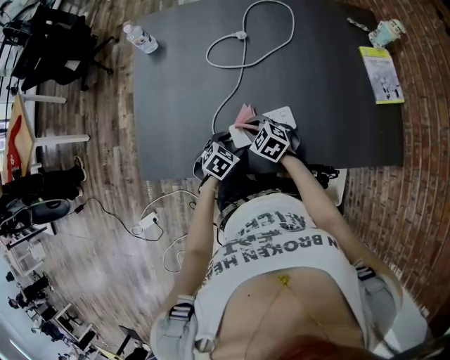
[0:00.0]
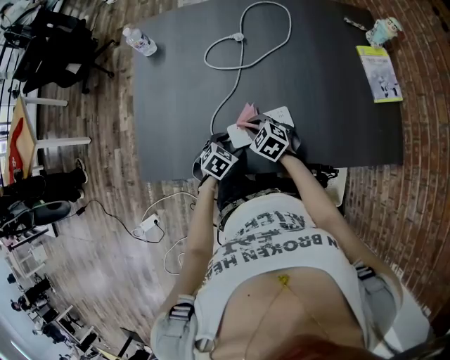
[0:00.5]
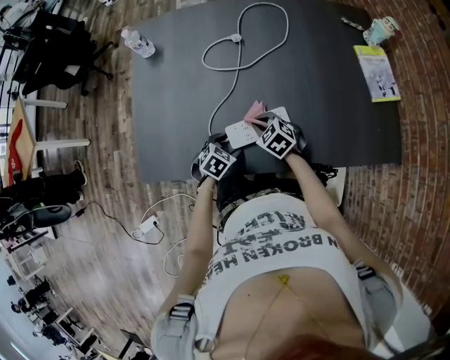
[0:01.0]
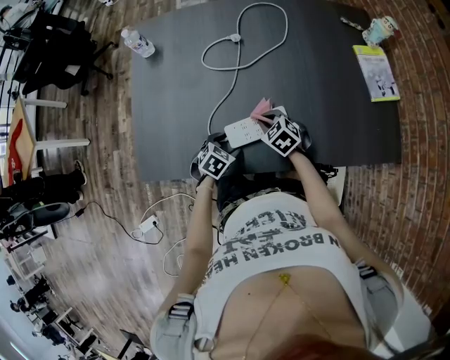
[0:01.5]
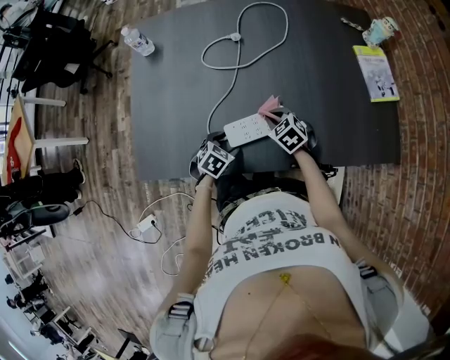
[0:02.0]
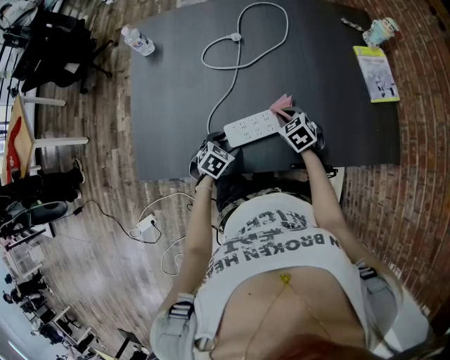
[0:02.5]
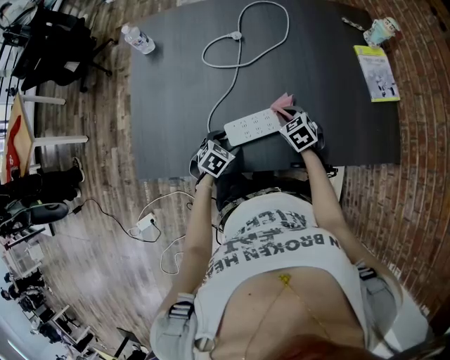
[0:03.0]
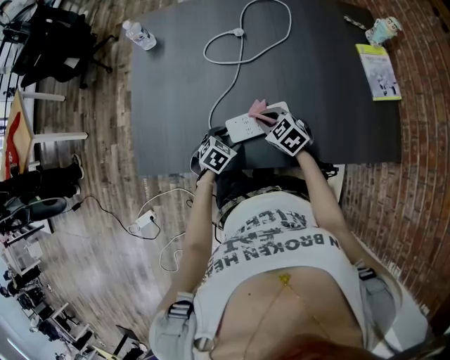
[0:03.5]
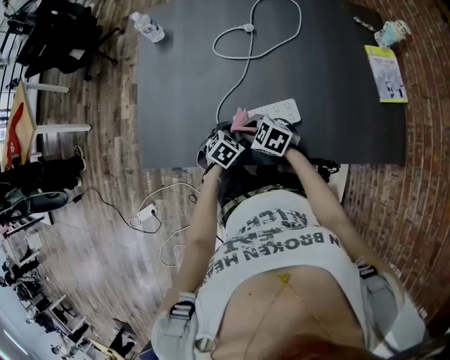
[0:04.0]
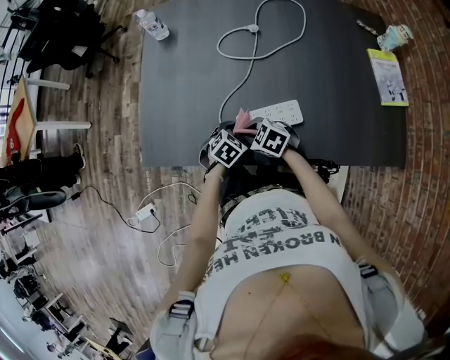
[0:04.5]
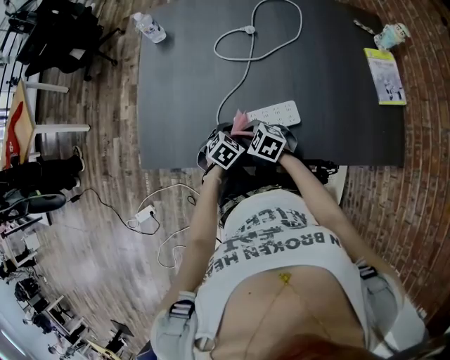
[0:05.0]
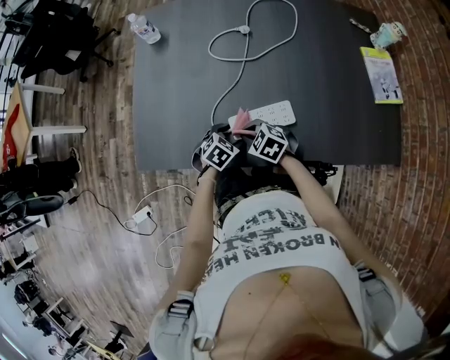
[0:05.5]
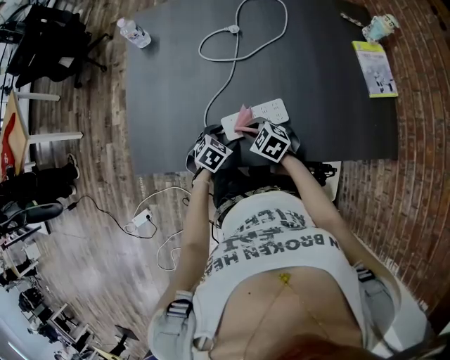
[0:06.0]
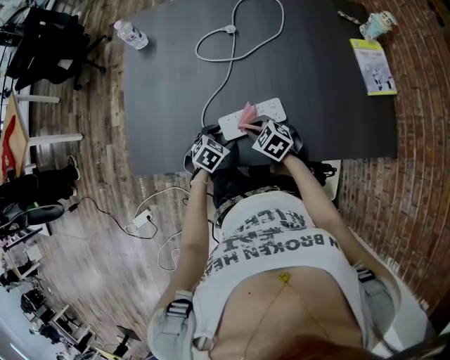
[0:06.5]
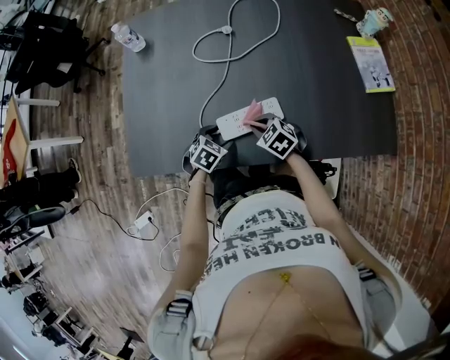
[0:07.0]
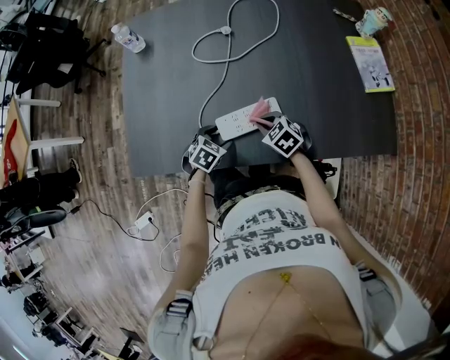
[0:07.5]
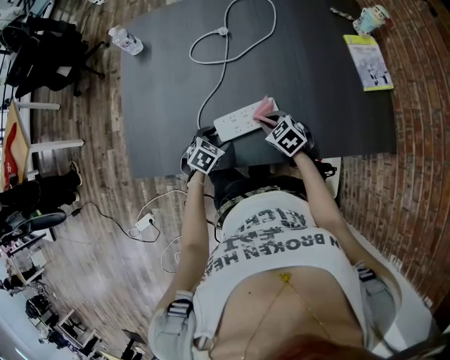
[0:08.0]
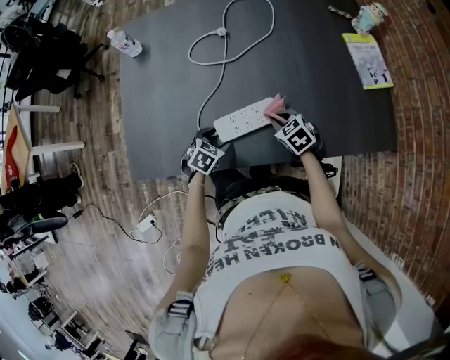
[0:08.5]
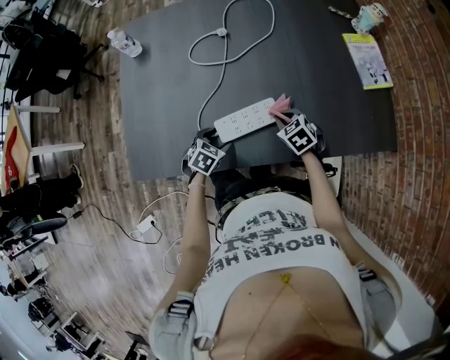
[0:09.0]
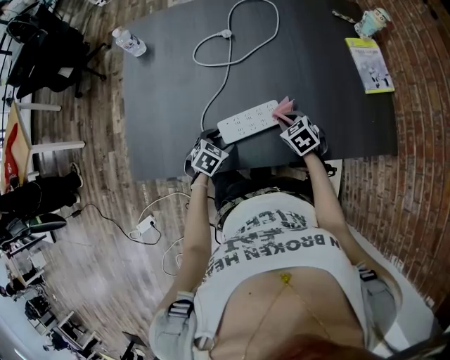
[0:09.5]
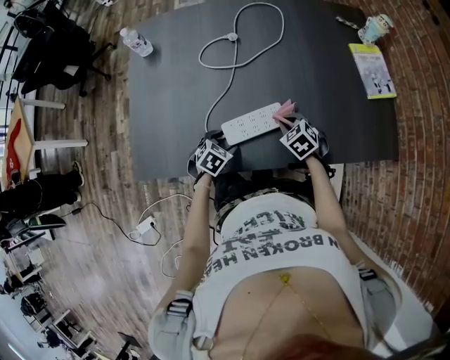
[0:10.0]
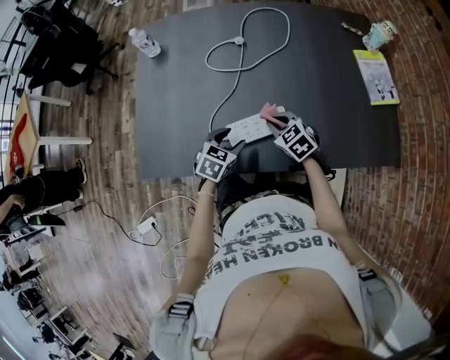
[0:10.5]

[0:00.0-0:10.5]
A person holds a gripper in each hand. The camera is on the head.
0:00.0 to 0:02.0: The right gripper goes approximately 10 cm to the right.
0:02.0 to 0:04.0: The right gripper shifts by roughly 15 cm, and swivels approximately 30 degrees.
0:04.0 to 0:06.5: The right gripper changes place by roughly 5 cm.
0:06.5 to 0:08.5: The right gripper goes approximately 10 cm to the right.
0:08.5 to 0:10.5: The left gripper goes about 10 cm upward; the right gripper shifts some 5 cm to the left.

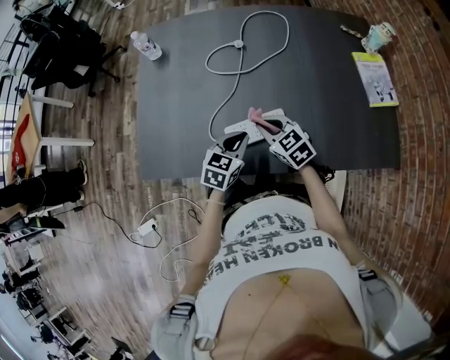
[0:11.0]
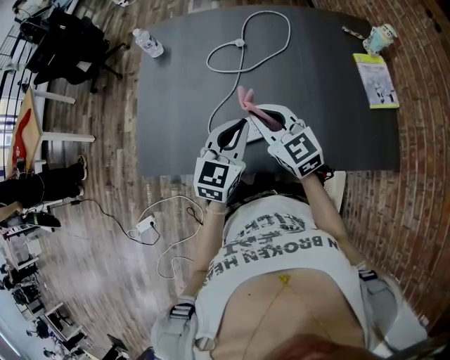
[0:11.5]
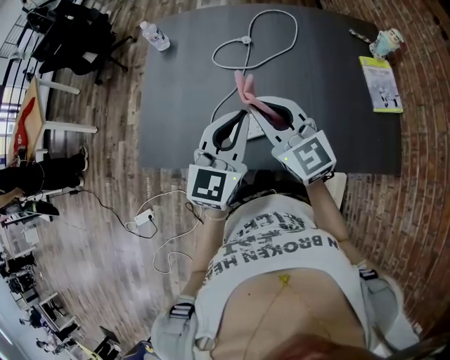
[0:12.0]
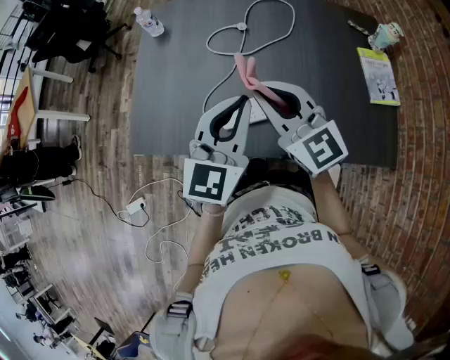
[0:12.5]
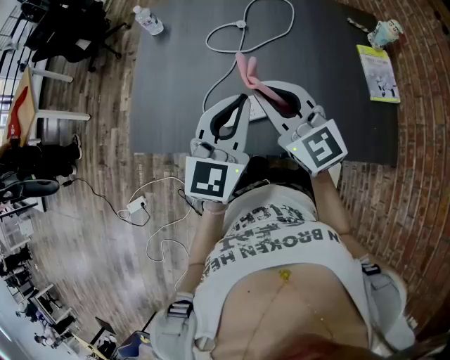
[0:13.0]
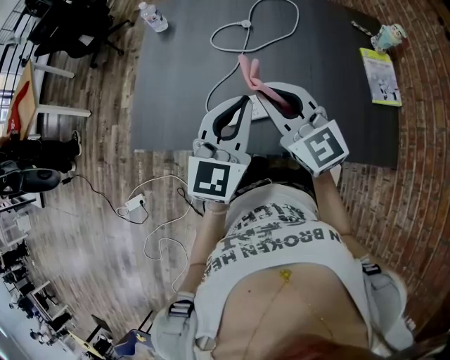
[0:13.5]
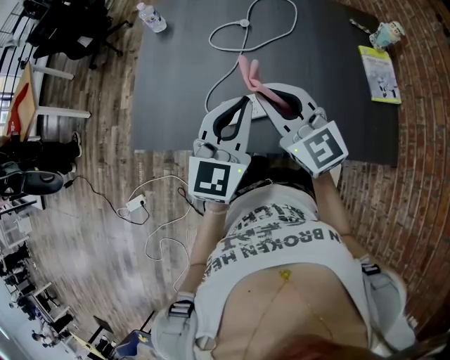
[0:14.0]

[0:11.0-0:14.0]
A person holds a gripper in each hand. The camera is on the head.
0:11.0 to 0:12.5: Both grippers move upward, roughly 25 cm. The right gripper angles its fingers upward, by some 30 degrees; the left gripper swivels approximately 30 degrees.
0:12.5 to 0:14.0: The grippers make only small movements.

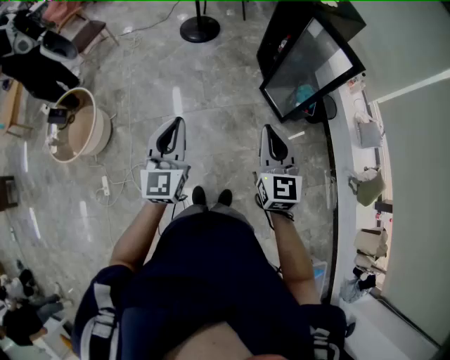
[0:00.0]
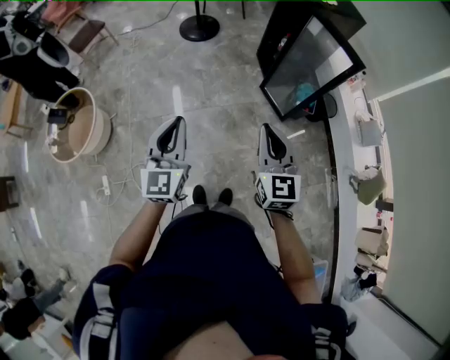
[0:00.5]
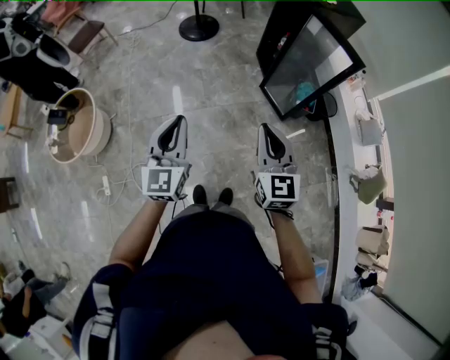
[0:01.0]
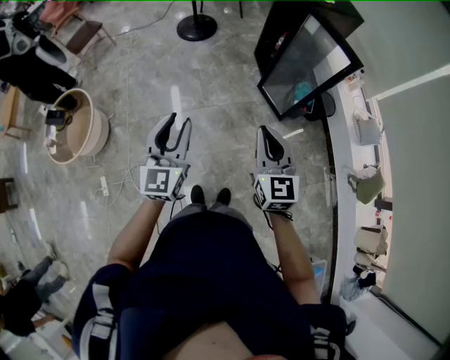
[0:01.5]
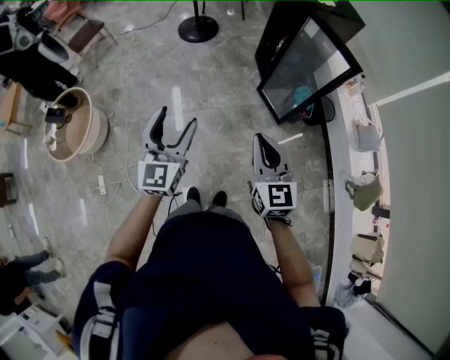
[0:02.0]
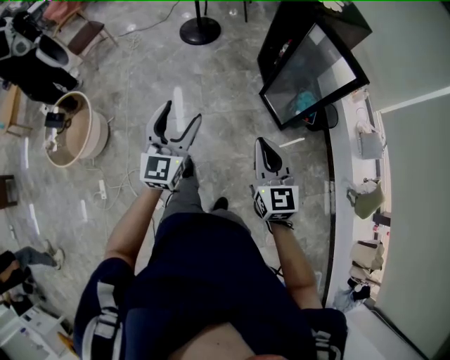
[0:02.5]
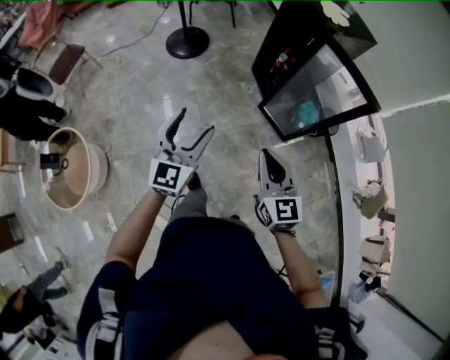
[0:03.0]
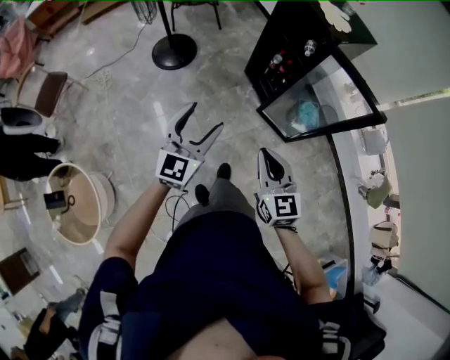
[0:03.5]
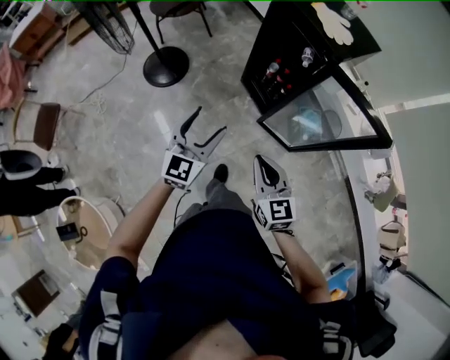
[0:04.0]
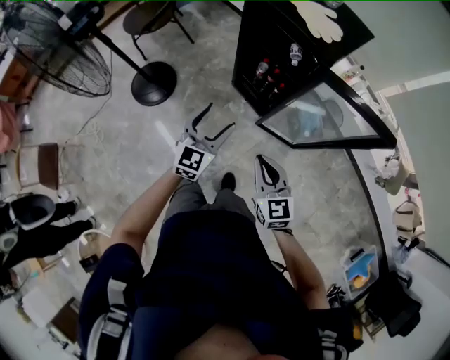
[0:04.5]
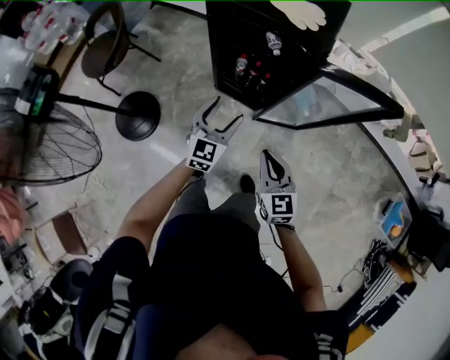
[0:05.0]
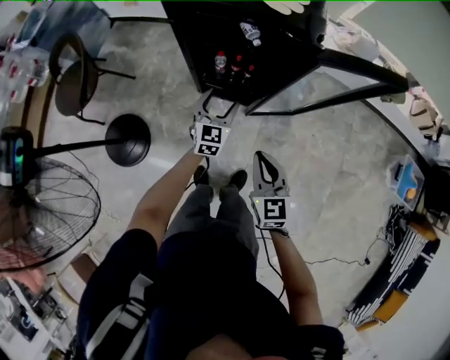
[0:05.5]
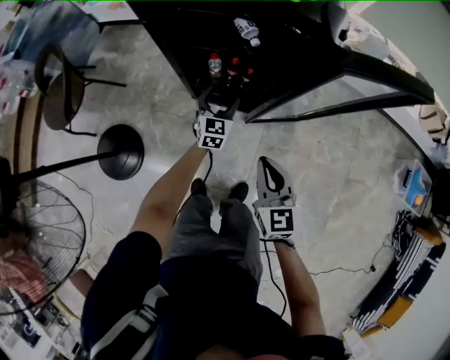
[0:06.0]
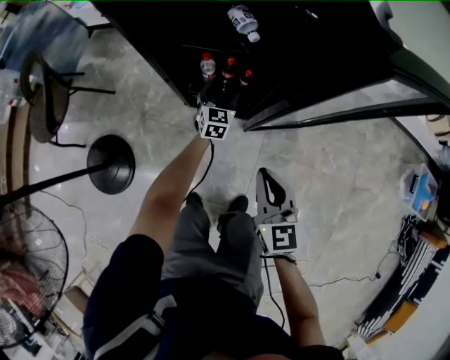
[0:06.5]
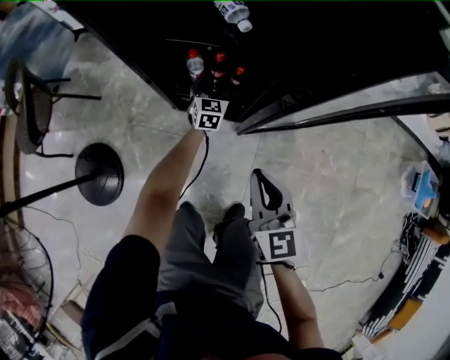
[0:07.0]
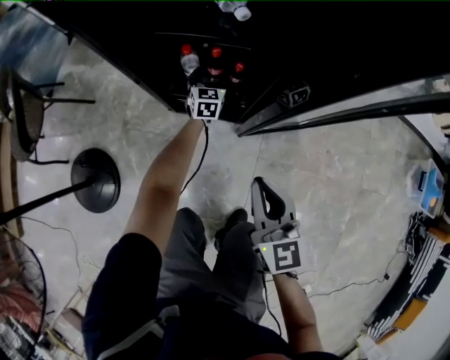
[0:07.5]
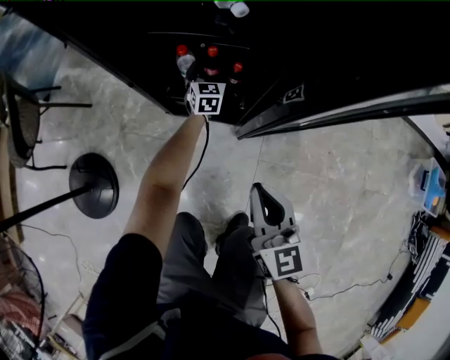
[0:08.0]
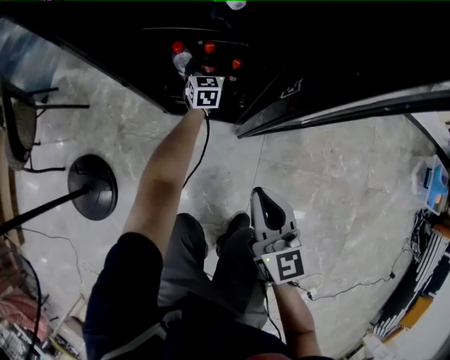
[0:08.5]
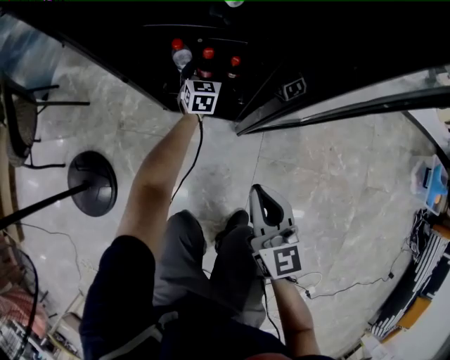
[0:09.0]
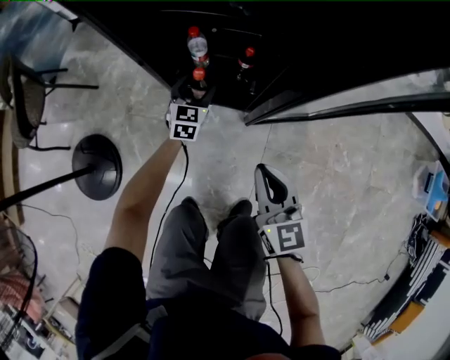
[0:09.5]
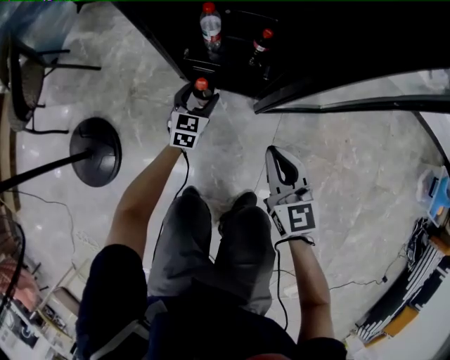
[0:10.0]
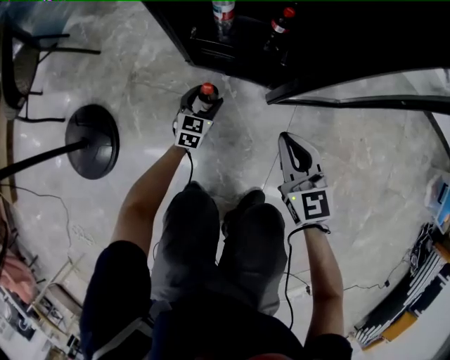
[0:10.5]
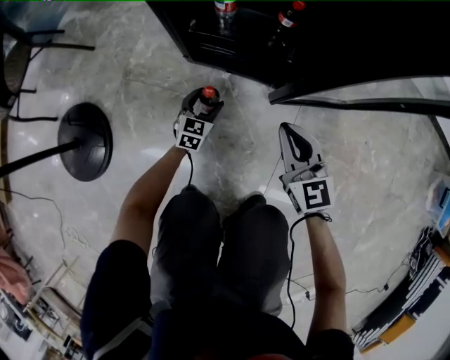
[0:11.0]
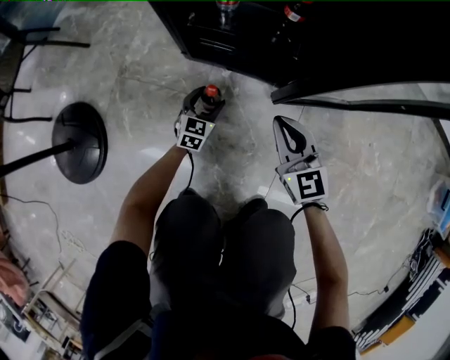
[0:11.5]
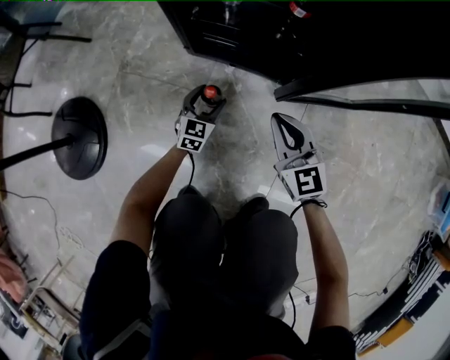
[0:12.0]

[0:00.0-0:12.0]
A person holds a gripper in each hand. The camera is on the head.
0:00.0 to 0:02.0: The left gripper shifts by roughly 5 cm, and opens its fingers.
0:02.0 to 0:04.0: The pair of grippers is taken some 50 cm. The left gripper swivels about 40 degrees. The right gripper changes its angle by some 20 degrees.
0:04.0 to 0:06.0: The right gripper changes place by about 30 cm, and turns by about 50 degrees, while the left gripper changes place by roughly 60 cm, and rotates about 40 degrees.
0:06.0 to 0:08.0: The left gripper is displaced downward and forward by about 35 cm. Meanwhile the right gripper shifts about 20 cm downward.
0:08.0 to 0:10.0: The right gripper is displaced downward by some 10 cm; the left gripper shifts about 20 cm backward and to the left.
0:10.0 to 0:12.0: The two grippers go about 20 cm downward.

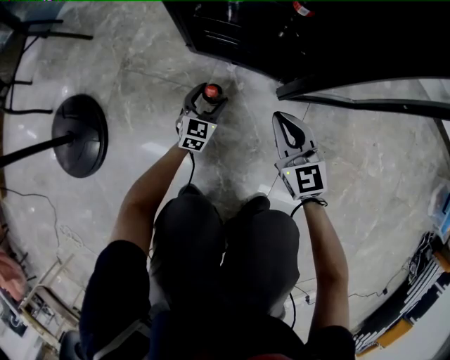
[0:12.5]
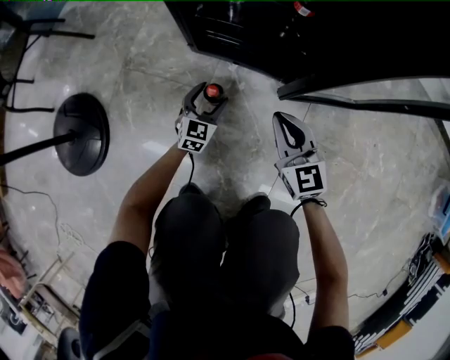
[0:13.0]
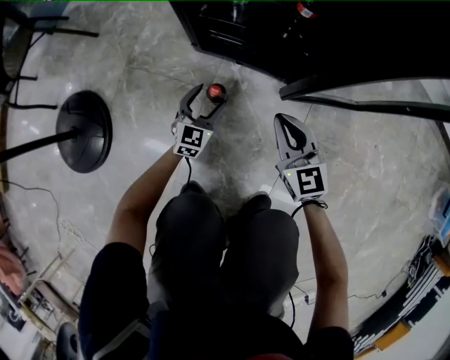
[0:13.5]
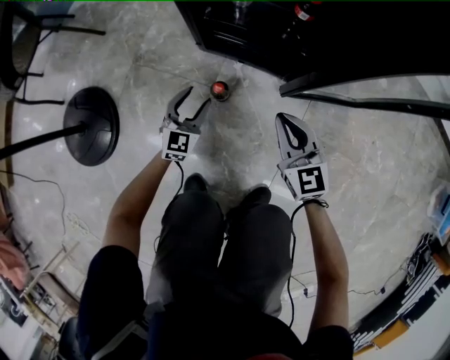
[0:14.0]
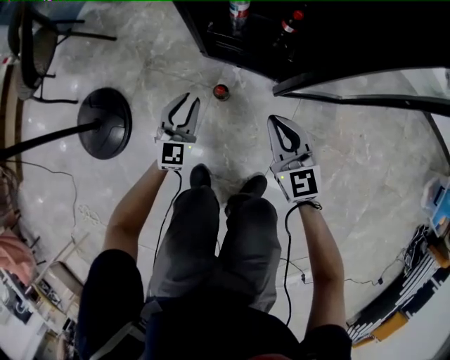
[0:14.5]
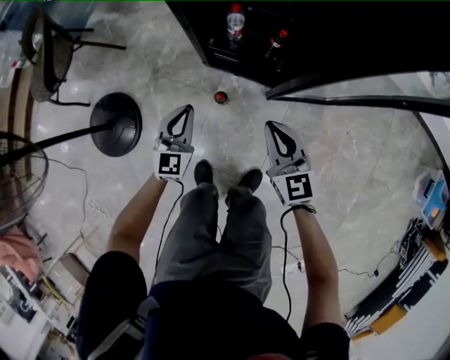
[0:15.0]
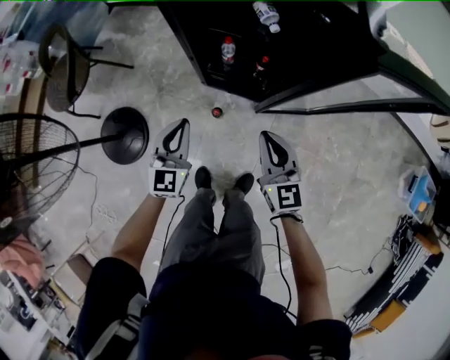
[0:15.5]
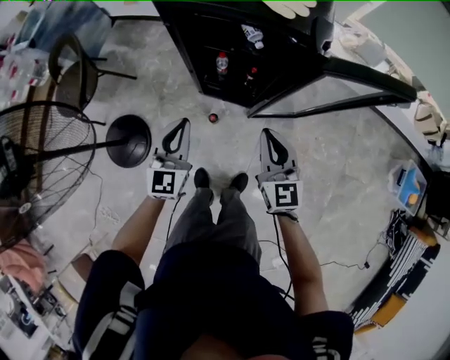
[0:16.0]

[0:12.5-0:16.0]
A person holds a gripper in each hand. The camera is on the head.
0:12.5 to 0:14.5: The right gripper moves upward, approximately 20 cm. Meanwhile the left gripper is displaced upward by approximately 30 cm, and closes up.
0:14.5 to 0:16.0: Both grippers move upward, about 50 cm.
